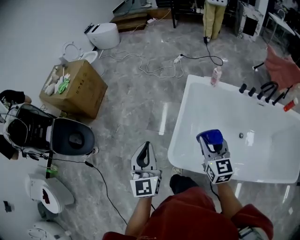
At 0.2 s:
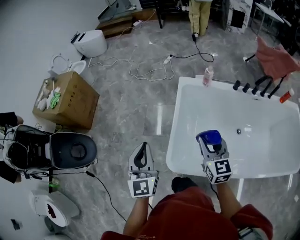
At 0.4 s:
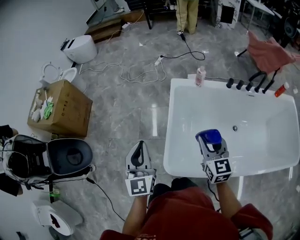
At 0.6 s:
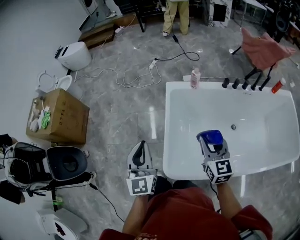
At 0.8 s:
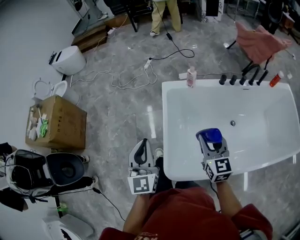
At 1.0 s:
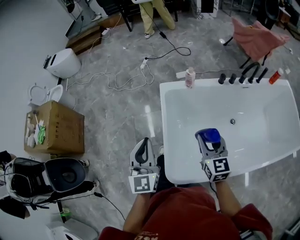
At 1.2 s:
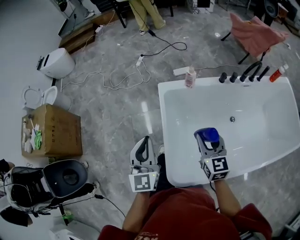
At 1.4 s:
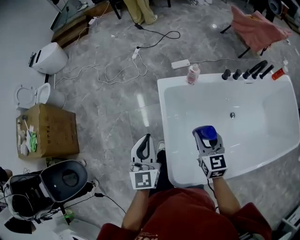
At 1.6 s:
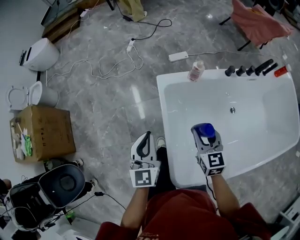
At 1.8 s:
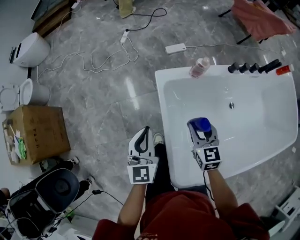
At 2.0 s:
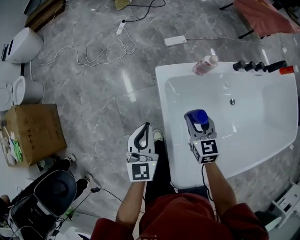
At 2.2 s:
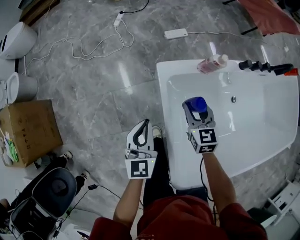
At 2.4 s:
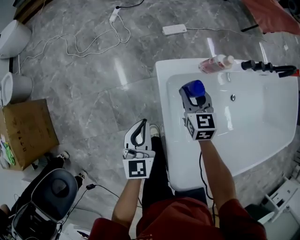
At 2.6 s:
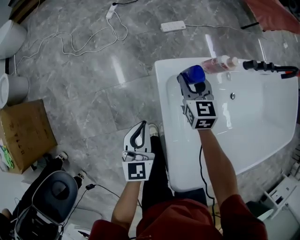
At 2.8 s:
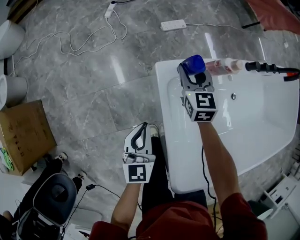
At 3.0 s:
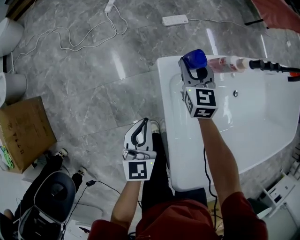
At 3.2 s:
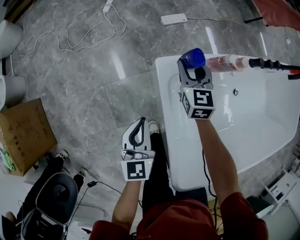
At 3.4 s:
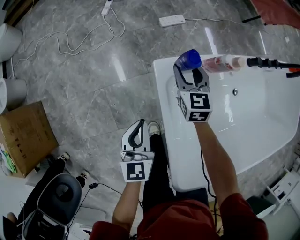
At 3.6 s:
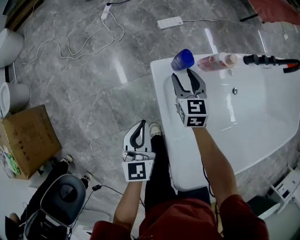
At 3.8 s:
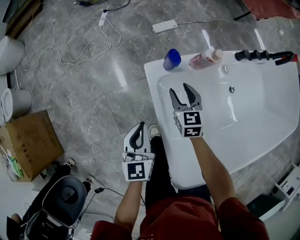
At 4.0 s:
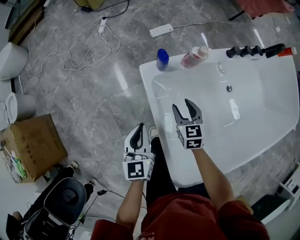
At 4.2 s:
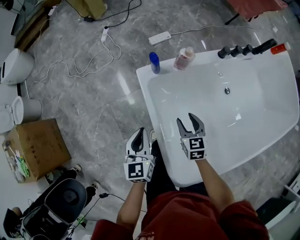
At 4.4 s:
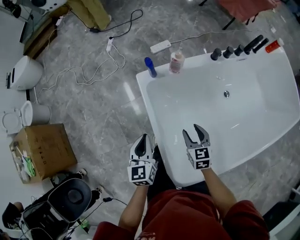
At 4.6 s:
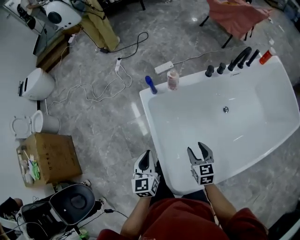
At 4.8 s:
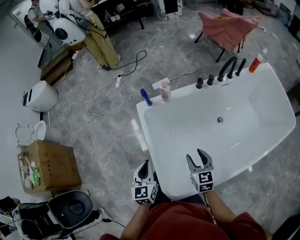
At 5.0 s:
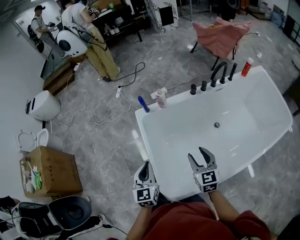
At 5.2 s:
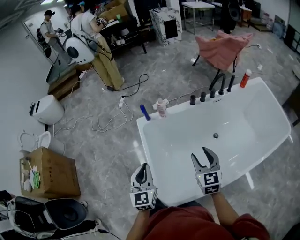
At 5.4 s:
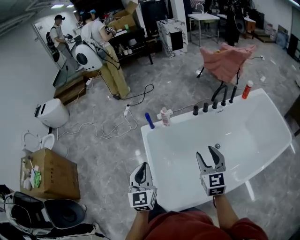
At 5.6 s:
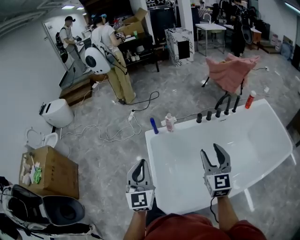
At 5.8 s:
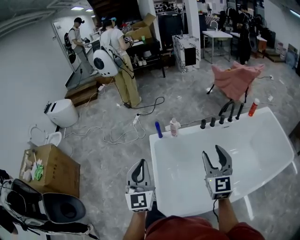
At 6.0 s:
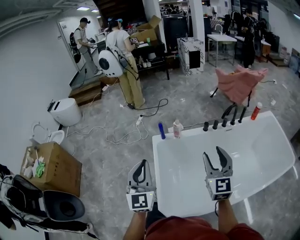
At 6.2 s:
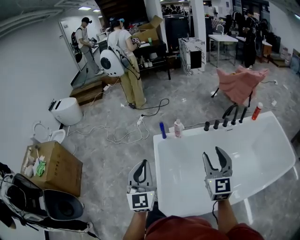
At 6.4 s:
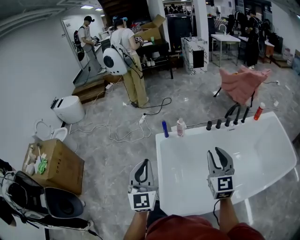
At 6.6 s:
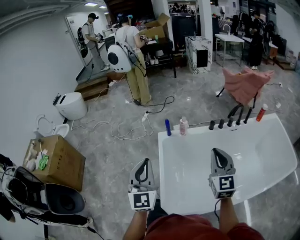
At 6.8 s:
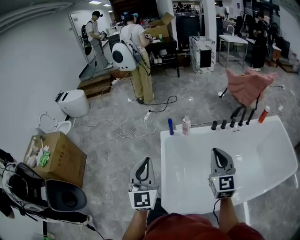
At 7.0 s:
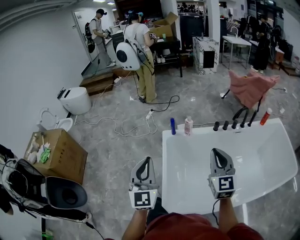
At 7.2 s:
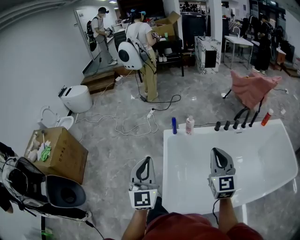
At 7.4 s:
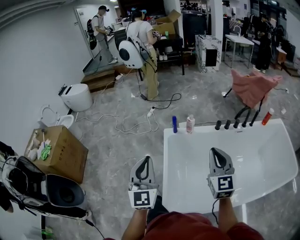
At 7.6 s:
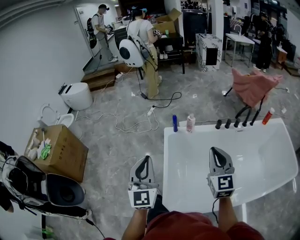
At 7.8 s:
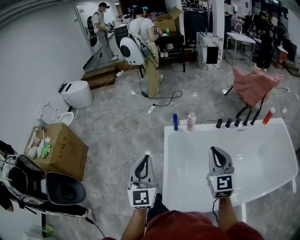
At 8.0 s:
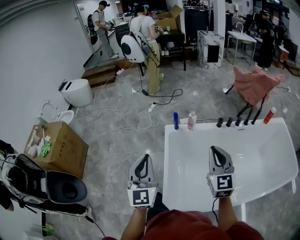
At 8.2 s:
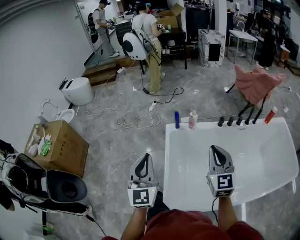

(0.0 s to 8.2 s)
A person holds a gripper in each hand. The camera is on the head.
0.0 s - 1.6 s: The right gripper changes place by roughly 30 cm, and turns by about 30 degrees. Meanwhile the left gripper moves approximately 40 cm, and changes its angle by approximately 30 degrees.
1.6 s - 3.2 s: The right gripper goes roughly 35 cm forward and downward. Meanwhile the left gripper shifts about 25 cm downward and forward.
3.2 s - 5.0 s: The right gripper goes about 60 cm backward, to the right and upward. The left gripper moves backward, upward and to the right, roughly 40 cm.
5.0 s - 6.6 s: The grippers both shift upward by approximately 20 cm. The right gripper changes its angle by roughly 20 degrees, and closes up. The left gripper changes its angle by approximately 30 degrees.
6.6 s - 8.2 s: The right gripper is displaced to the left by approximately 5 cm.

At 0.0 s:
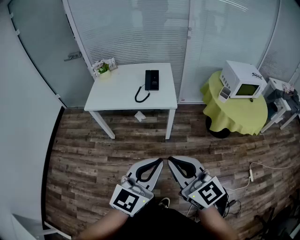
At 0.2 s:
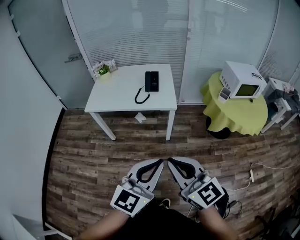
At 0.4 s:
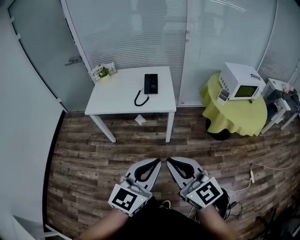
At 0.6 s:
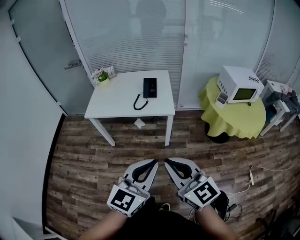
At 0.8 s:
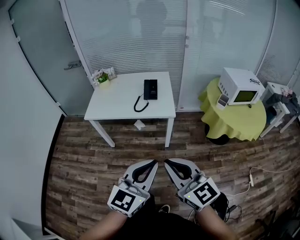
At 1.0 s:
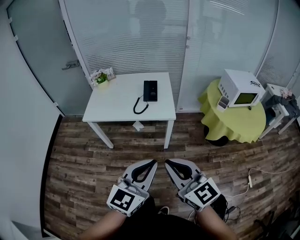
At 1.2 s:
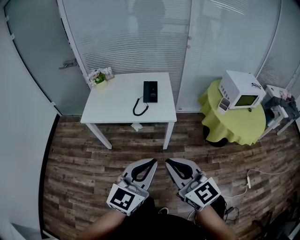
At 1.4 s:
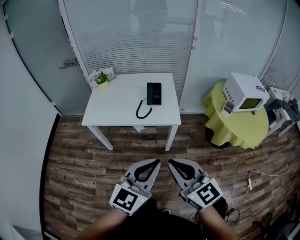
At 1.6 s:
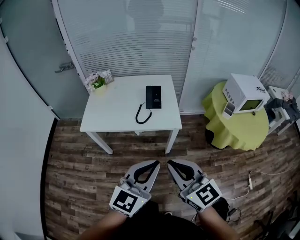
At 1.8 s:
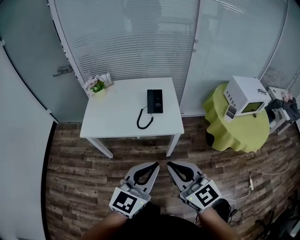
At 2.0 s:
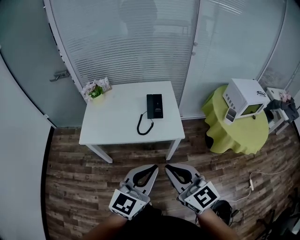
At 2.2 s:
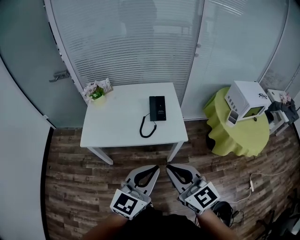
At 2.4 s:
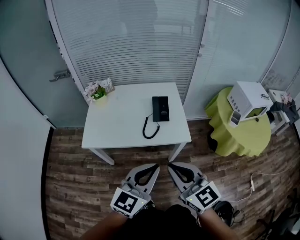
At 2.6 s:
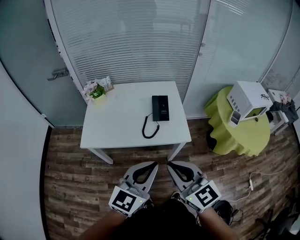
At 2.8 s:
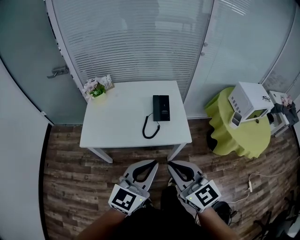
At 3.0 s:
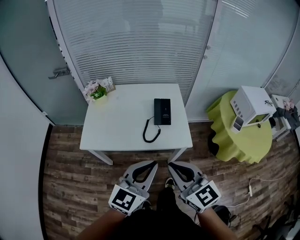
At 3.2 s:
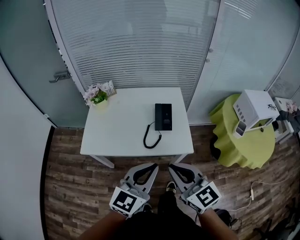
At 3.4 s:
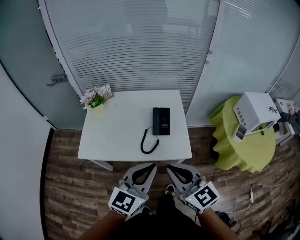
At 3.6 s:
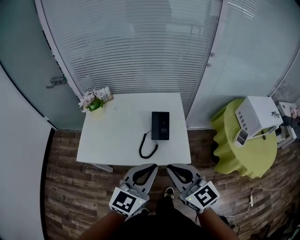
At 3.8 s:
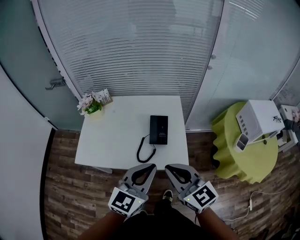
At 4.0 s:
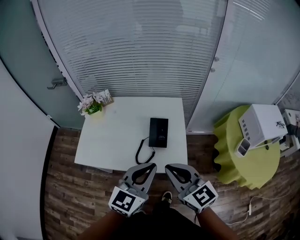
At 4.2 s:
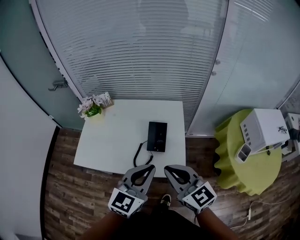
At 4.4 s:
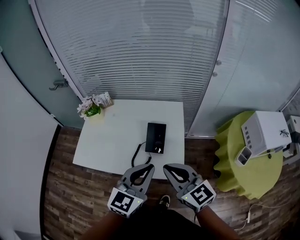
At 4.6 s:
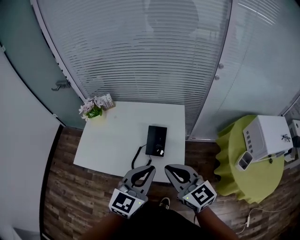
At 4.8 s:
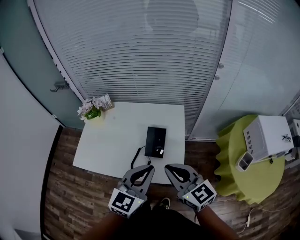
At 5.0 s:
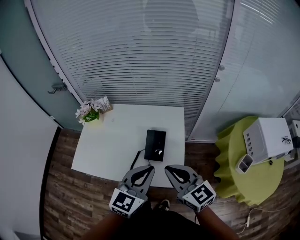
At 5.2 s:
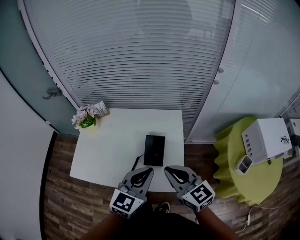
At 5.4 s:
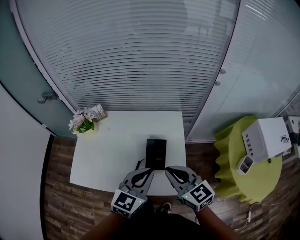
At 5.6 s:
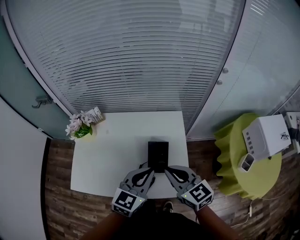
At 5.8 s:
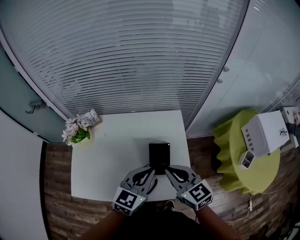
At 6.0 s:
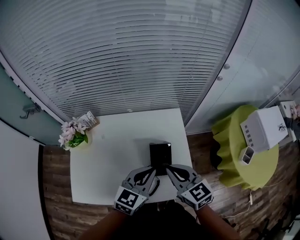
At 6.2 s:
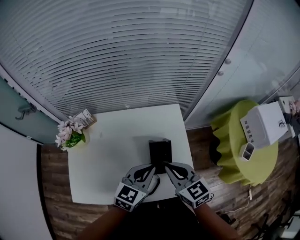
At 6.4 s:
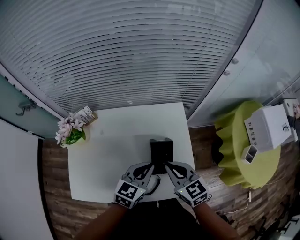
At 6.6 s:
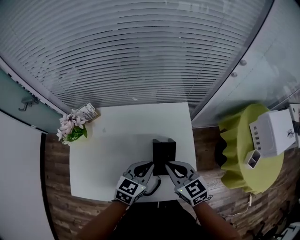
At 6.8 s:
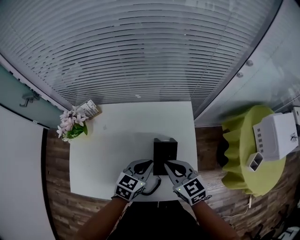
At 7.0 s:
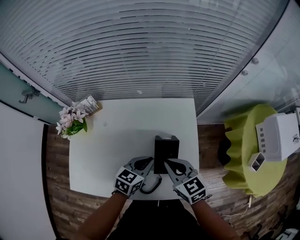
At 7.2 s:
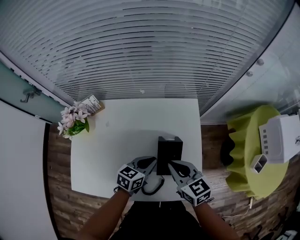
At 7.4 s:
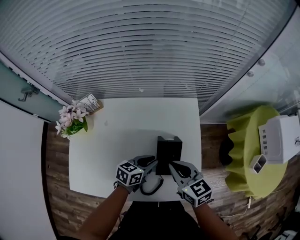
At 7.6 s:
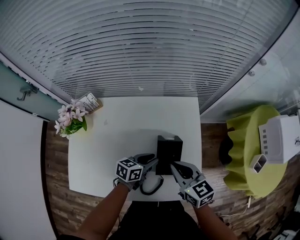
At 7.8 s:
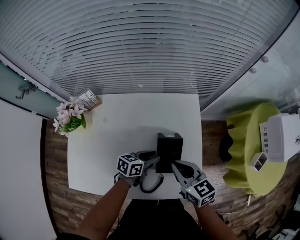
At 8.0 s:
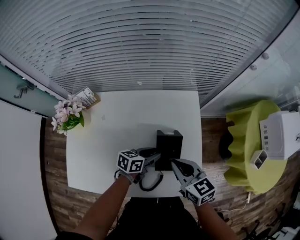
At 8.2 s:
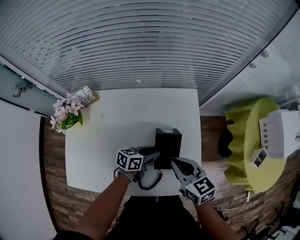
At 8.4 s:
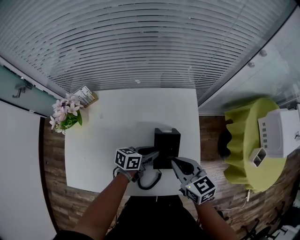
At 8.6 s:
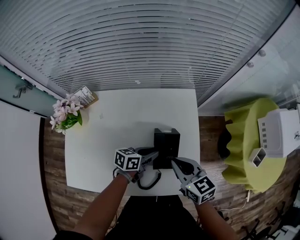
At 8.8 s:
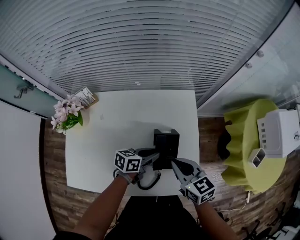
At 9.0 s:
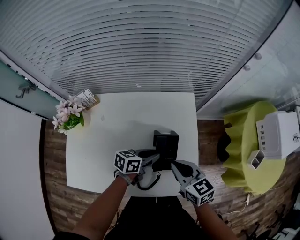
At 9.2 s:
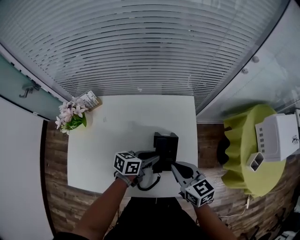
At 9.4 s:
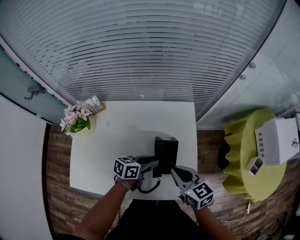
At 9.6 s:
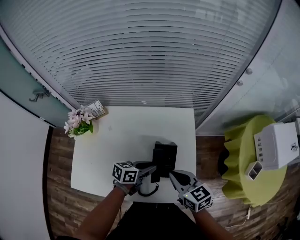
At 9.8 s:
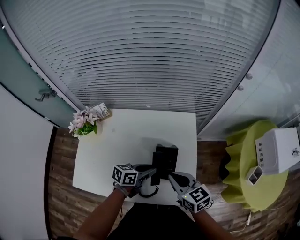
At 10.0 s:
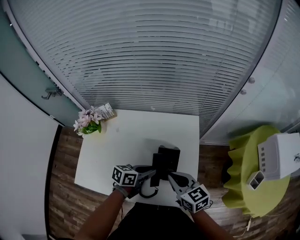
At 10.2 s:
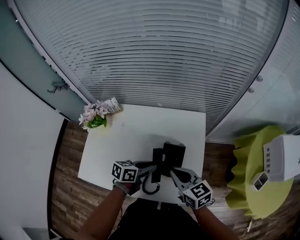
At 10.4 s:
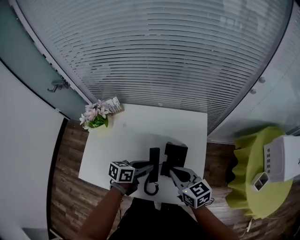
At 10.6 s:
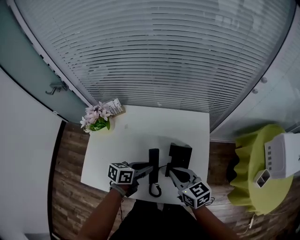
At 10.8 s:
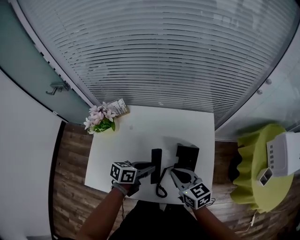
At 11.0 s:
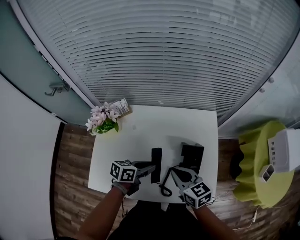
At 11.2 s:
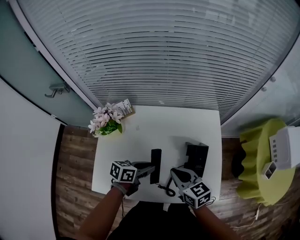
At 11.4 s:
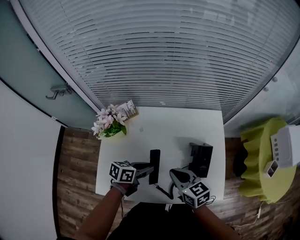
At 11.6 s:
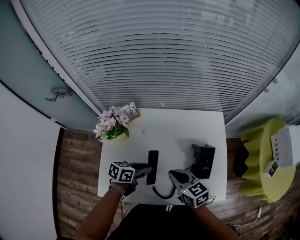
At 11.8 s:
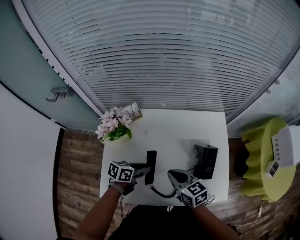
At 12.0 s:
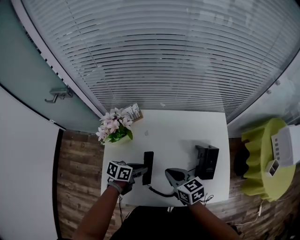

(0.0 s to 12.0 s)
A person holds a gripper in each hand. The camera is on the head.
0.0 s - 1.6 s: The two grippers go some 15 cm forward.
1.6 s - 3.0 s: The grippers both shift forward and to the left by some 15 cm.
3.0 s - 4.4 s: Both grippers travel together forward and to the right, approximately 20 cm.
4.4 s - 6.0 s: The two grippers go roughly 20 cm forward and downward. The right gripper changes its angle by some 20 degrees.
6.0 s - 7.6 s: The left gripper shifts about 20 cm downward, turns by approximately 40 degrees, and opens its fingers. The right gripper heads downward, covering approximately 10 cm.
7.6 s - 9.0 s: The grippers make only small movements.
9.0 s - 10.4 s: The left gripper is displaced to the left and upward by approximately 10 cm.
10.4 s - 12.0 s: Both grippers travel together to the left, about 20 cm.

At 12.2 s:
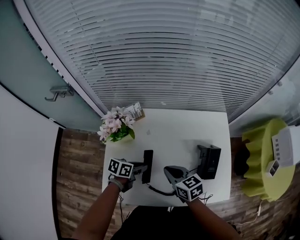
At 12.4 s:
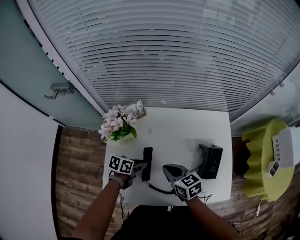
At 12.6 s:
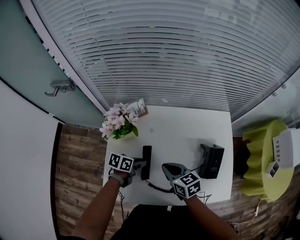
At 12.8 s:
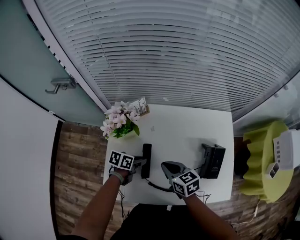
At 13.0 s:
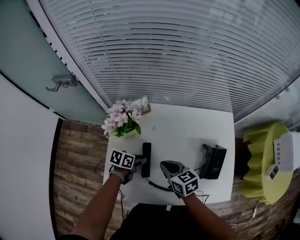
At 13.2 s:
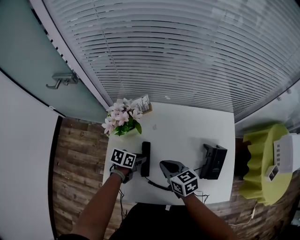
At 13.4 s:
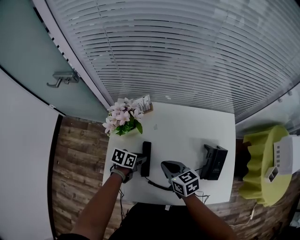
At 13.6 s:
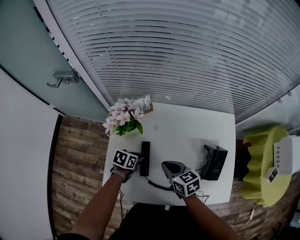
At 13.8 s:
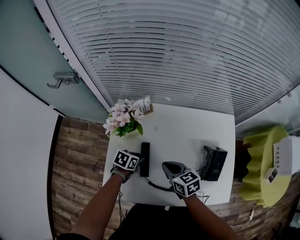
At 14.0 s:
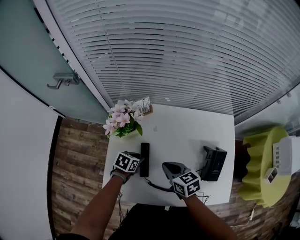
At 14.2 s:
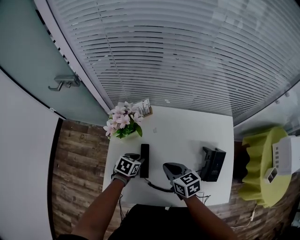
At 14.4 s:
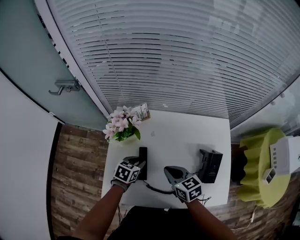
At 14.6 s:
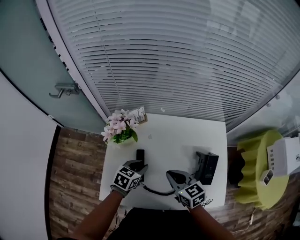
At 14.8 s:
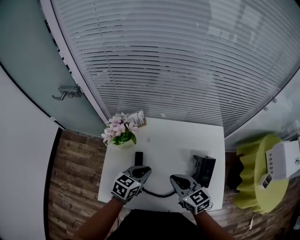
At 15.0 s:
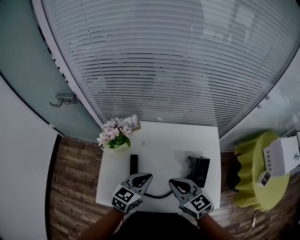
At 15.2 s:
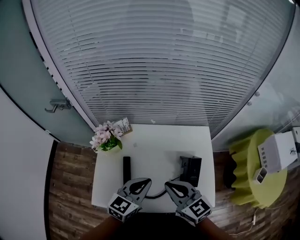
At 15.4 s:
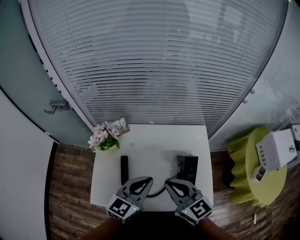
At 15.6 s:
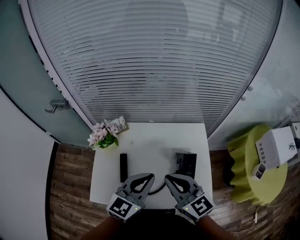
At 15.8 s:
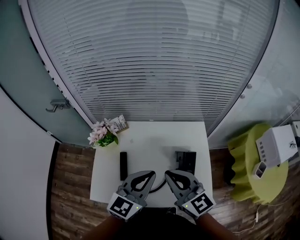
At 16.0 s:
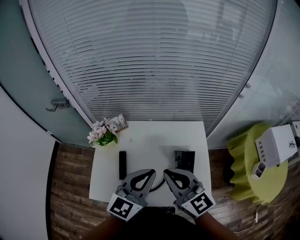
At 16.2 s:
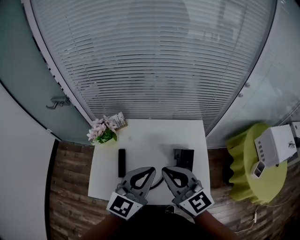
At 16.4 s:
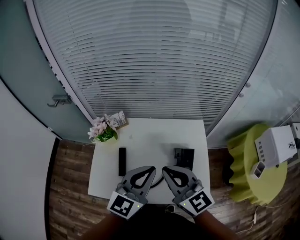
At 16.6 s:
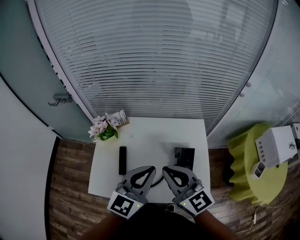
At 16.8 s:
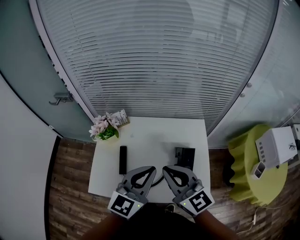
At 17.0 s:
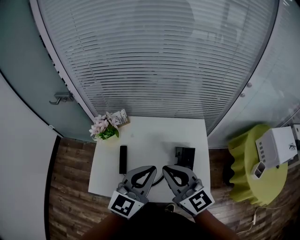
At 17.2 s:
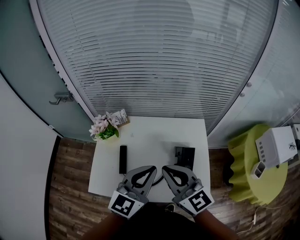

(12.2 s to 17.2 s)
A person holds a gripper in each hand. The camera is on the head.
12.2 s - 13.8 s: The right gripper moves some 5 cm. Meanwhile the left gripper goes approximately 10 cm to the left and downward.
13.8 s - 15.6 s: The grippers both shift upward and to the right by about 35 cm. The left gripper points its fingers about 40 degrees further upward, and closes up, while the right gripper swivels roughly 40 degrees.
15.6 s - 17.2 s: The grippers make only small movements.
